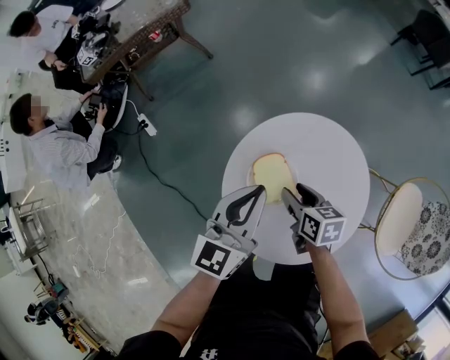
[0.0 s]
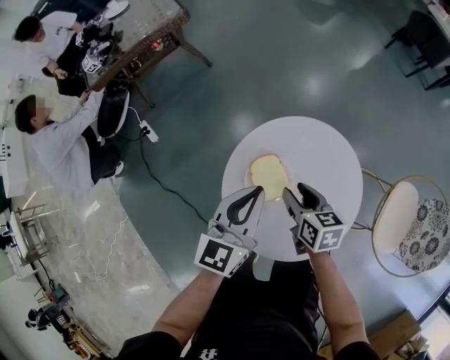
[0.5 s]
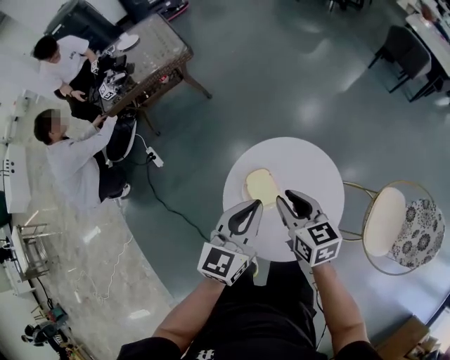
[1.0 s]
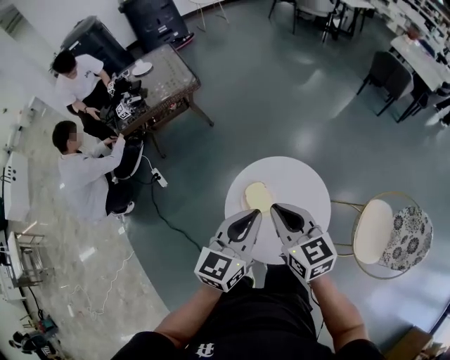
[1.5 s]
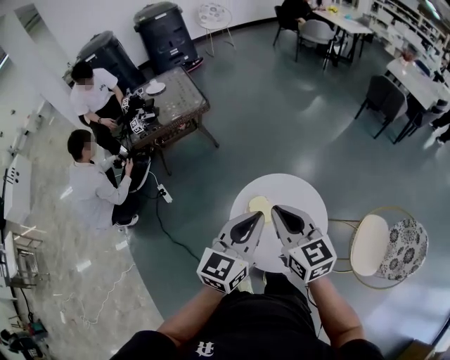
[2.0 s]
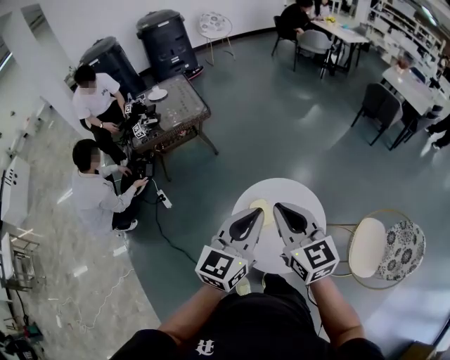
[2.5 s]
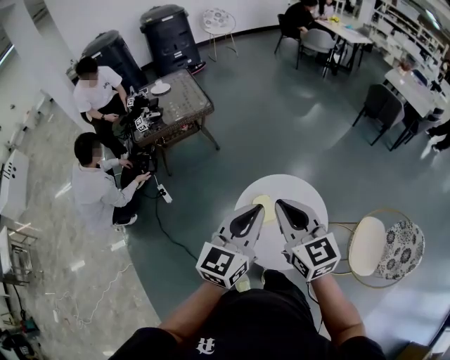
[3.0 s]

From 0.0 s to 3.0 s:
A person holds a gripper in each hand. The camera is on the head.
From 0.0 s to 1.5 s: The right gripper shifts roughly 35 cm upward, rotates some 40 degrees, and closes. Meanwhile the left gripper goes approximately 20 cm upward and backward.
From 1.5 s to 3.0 s: The grippers both shift upward by some 10 cm.

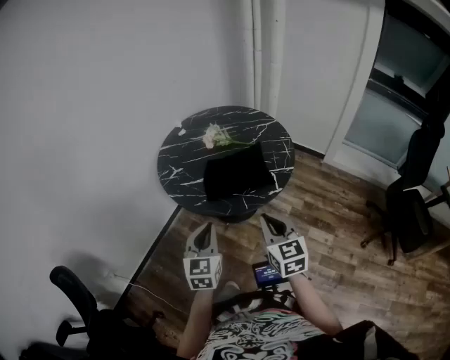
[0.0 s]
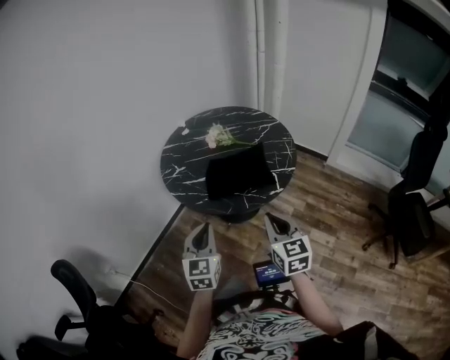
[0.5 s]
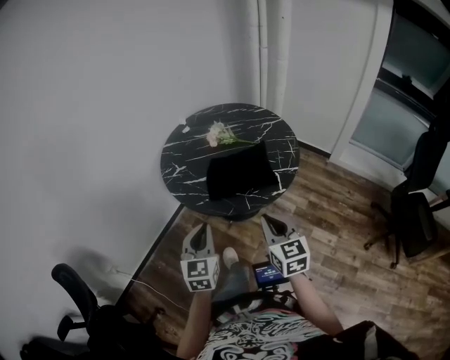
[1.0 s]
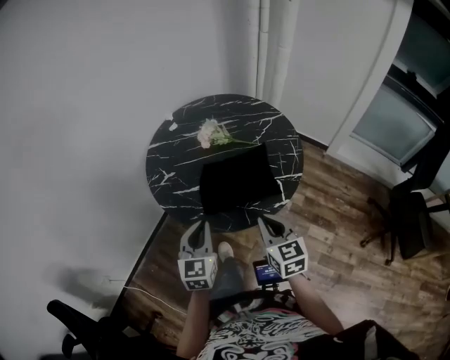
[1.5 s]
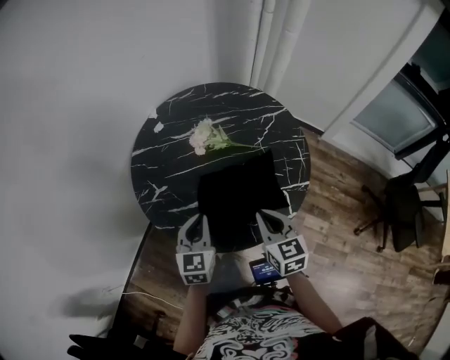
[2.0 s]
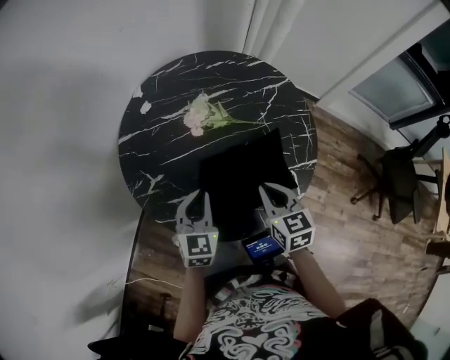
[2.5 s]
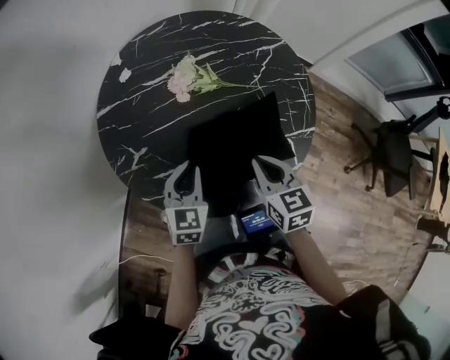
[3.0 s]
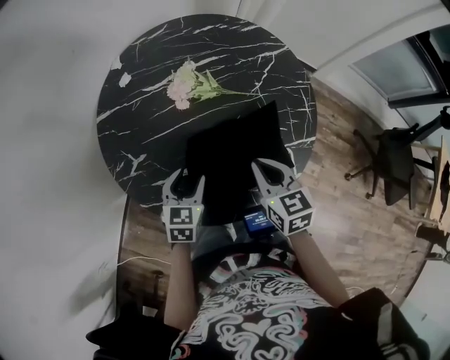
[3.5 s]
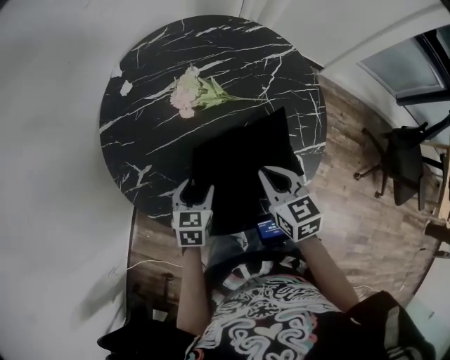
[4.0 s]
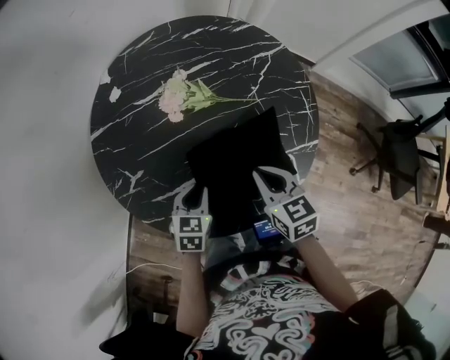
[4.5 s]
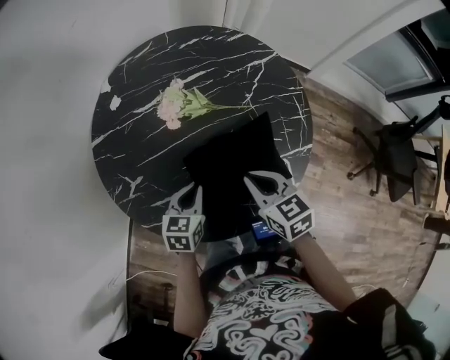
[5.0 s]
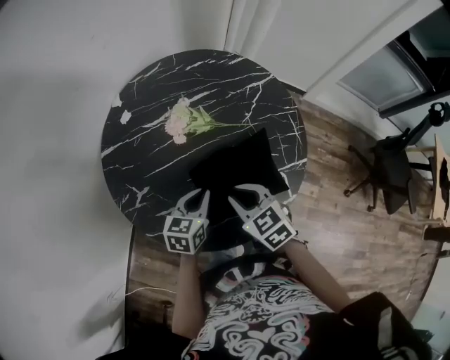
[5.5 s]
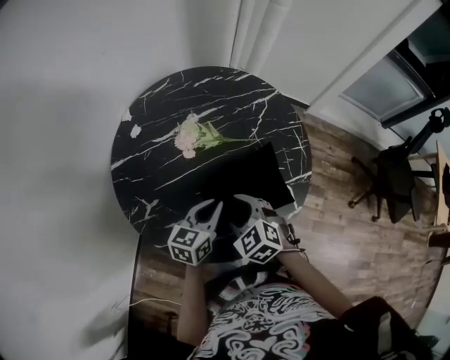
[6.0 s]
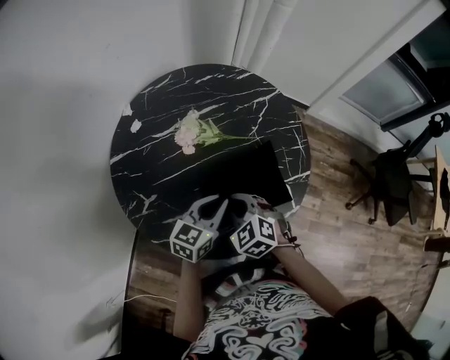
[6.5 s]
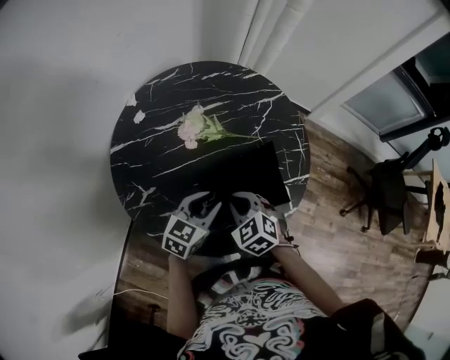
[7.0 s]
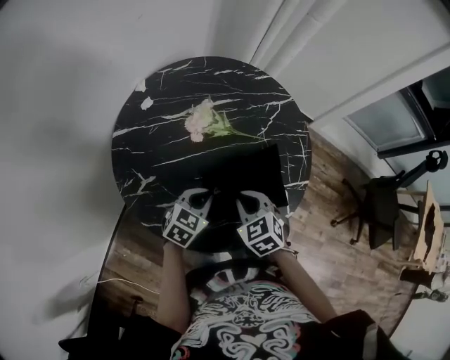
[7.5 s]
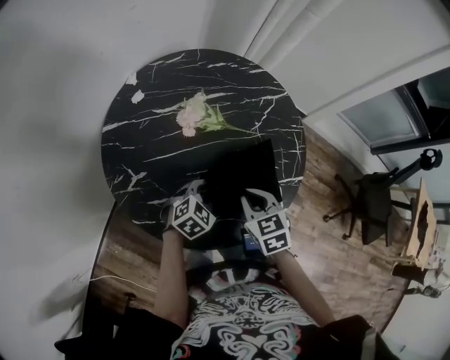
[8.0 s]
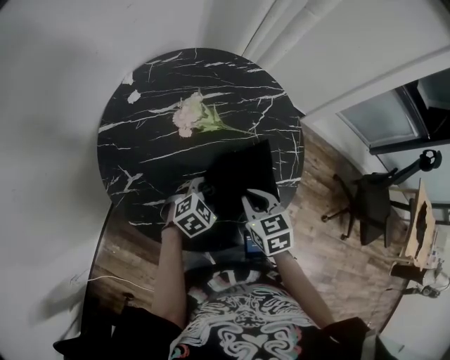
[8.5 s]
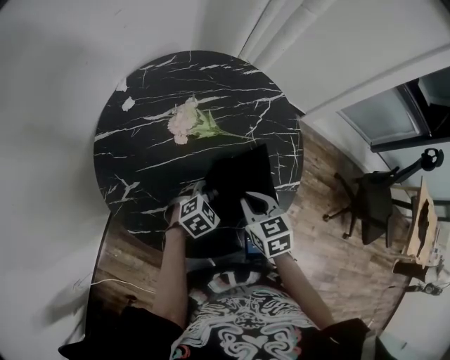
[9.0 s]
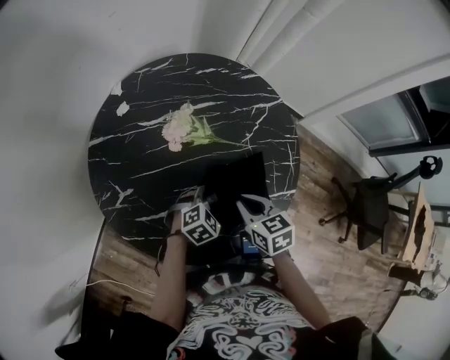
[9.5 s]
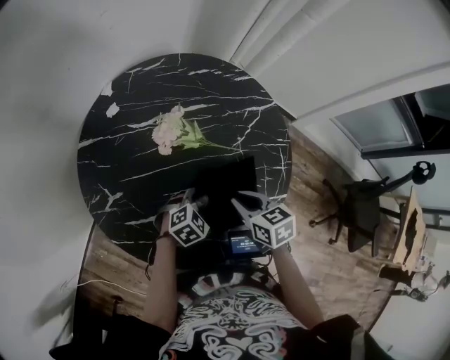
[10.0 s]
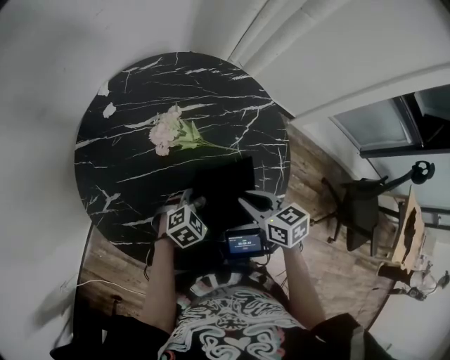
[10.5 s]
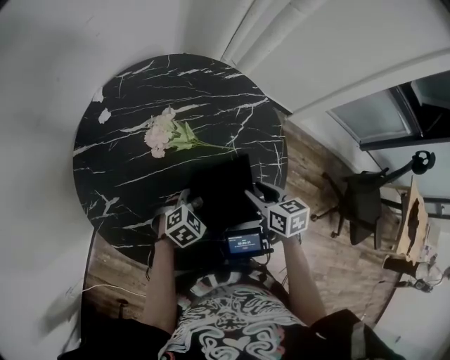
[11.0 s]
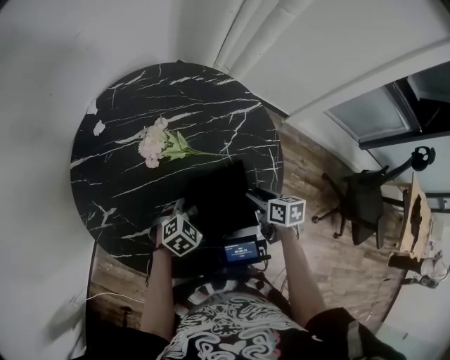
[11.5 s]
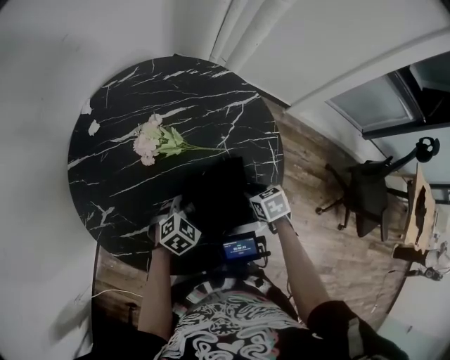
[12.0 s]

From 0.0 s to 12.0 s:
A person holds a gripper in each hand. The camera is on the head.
From 0.0 s to 2.0 s: Both grippers travel together forward, approximately 25 cm.
From 2.0 s to 4.0 s: The right gripper moves forward and downward, approximately 10 cm. The left gripper goes about 15 cm downward, turns by some 30 degrees, and opens up.
From 4.0 s to 6.0 s: The left gripper is displaced upward and to the right by about 10 cm, swivels about 30 degrees, and closes up. The right gripper moves to the left, about 10 cm, changes its angle by roughly 30 degrees, and opens.
From 6.0 s to 8.0 s: The left gripper moves downward, roughly 10 cm, and swivels approximately 40 degrees. Meanwhile the right gripper is displaced to the right by some 5 cm, turns by approximately 20 degrees, and closes.
From 8.0 s to 10.0 s: The left gripper shifts by roughly 10 cm, and opens; the right gripper is displaced forward by some 5 cm.
From 10.0 s to 12.0 s: The right gripper is displaced to the right and downward by roughly 15 cm, changes its angle by approximately 20 degrees, and opens up.

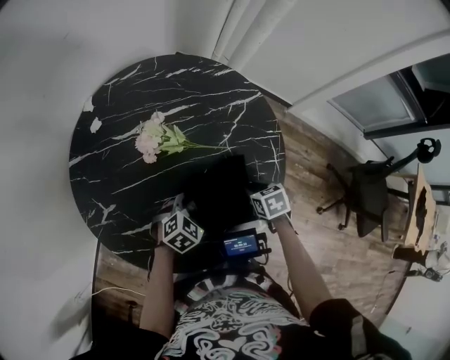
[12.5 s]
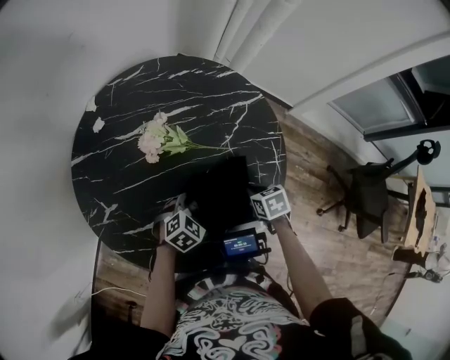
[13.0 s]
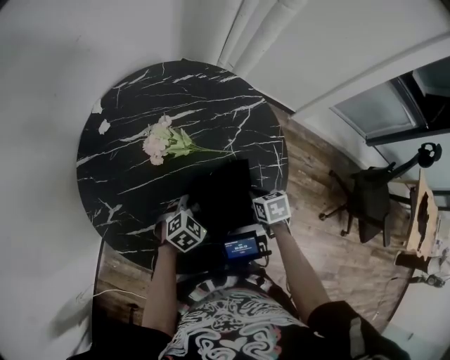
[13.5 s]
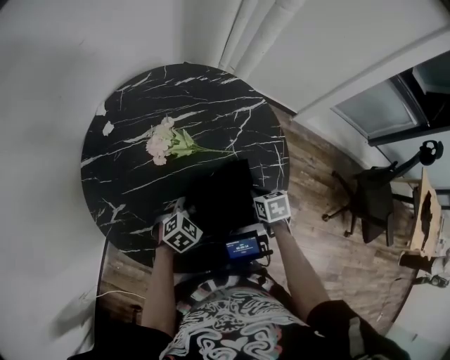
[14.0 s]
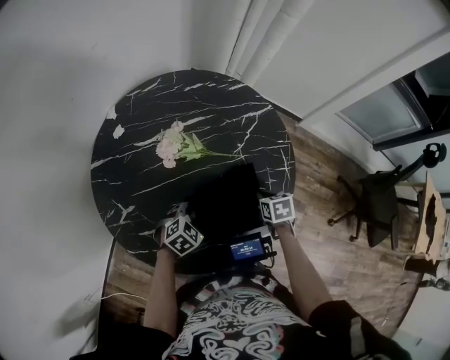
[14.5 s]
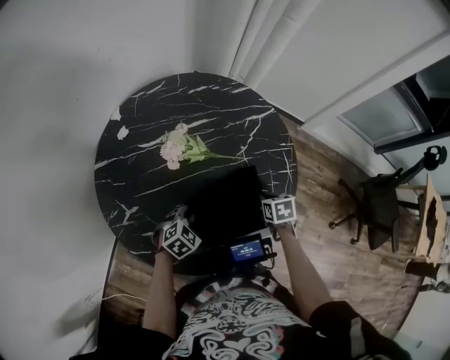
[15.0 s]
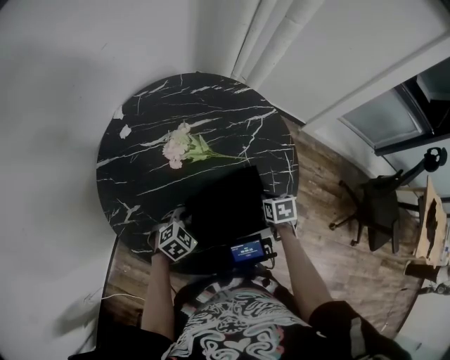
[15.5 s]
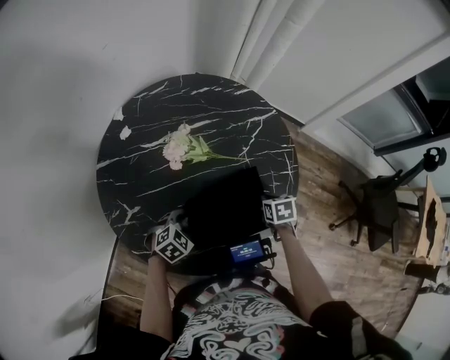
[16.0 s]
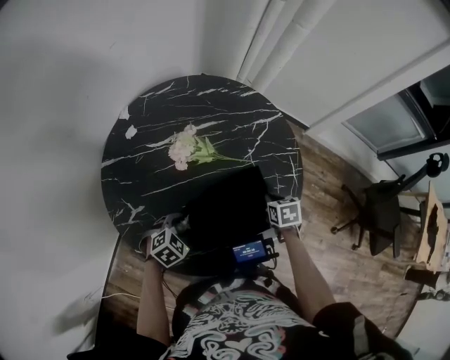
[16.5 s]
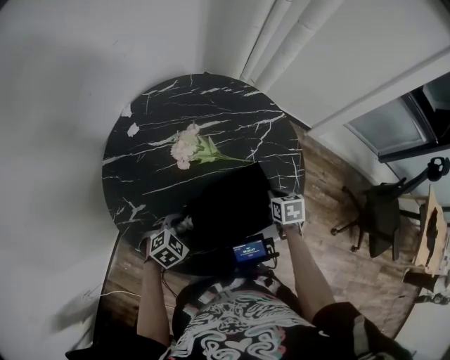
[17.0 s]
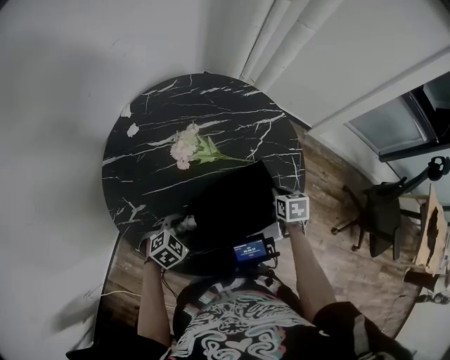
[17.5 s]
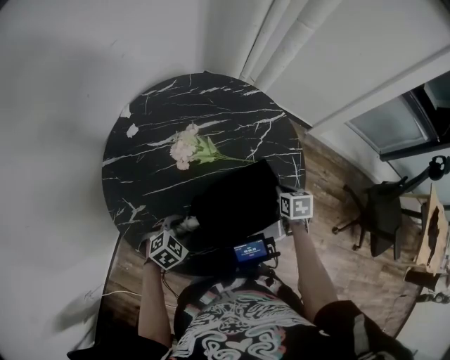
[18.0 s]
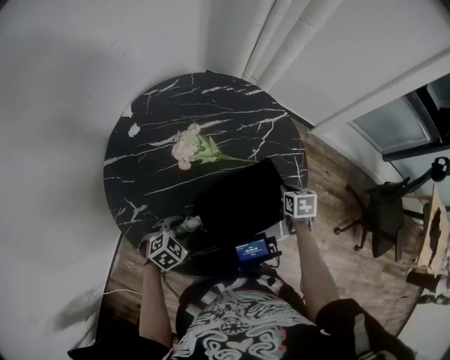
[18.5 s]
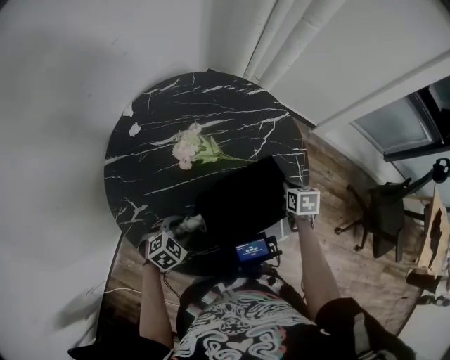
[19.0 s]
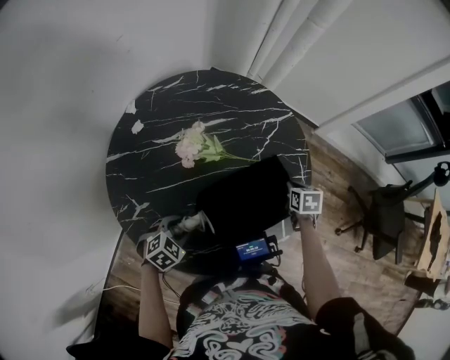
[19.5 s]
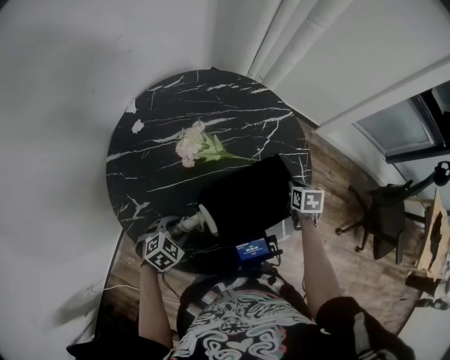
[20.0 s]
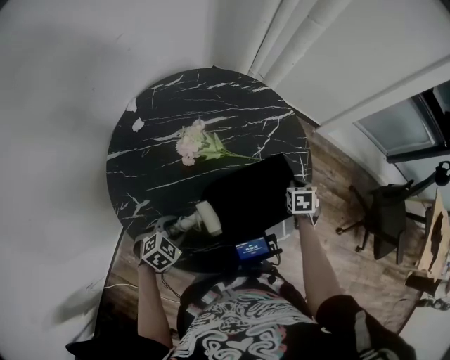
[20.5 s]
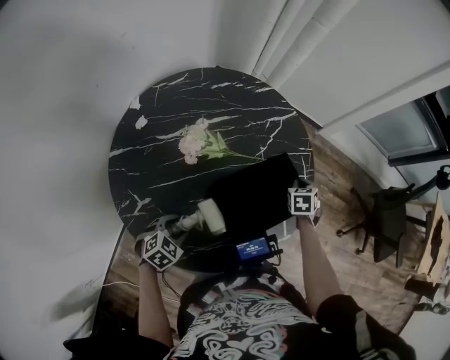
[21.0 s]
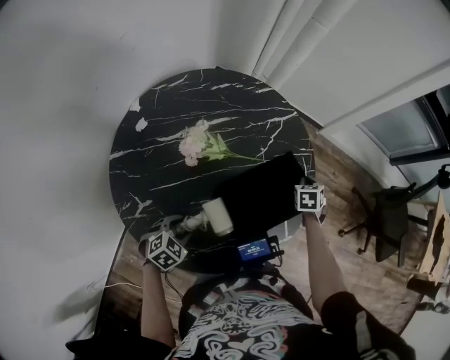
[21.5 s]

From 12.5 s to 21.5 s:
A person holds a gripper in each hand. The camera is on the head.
From 12.5 s to 14.5 s: The right gripper closes its fingers.
From 14.5 s to 17.0 s: The left gripper moves to the left and backward, some 10 cm.
From 17.0 s to 19.5 s: The right gripper goes approximately 5 cm forward.
From 19.5 s to 21.5 s: The right gripper moves some 5 cm, and turns by approximately 20 degrees.

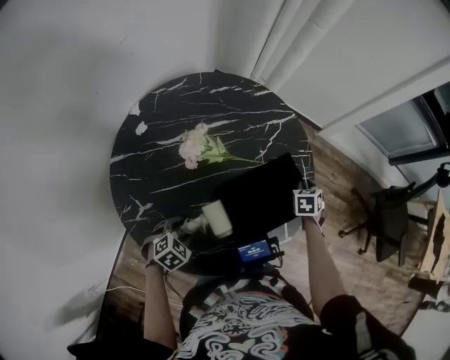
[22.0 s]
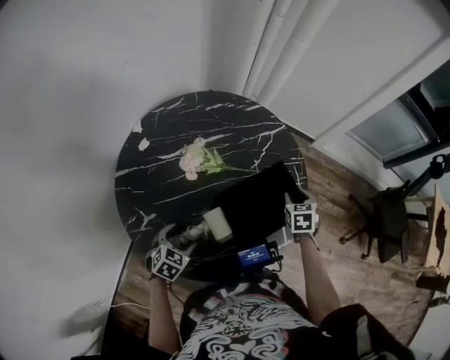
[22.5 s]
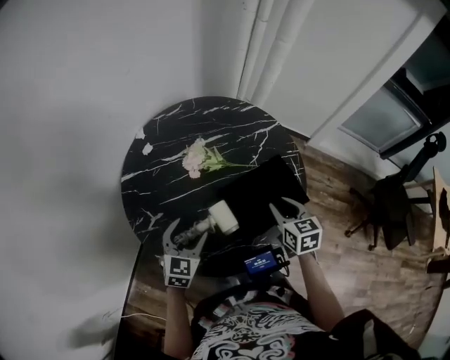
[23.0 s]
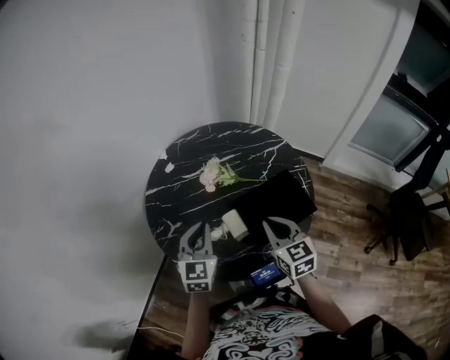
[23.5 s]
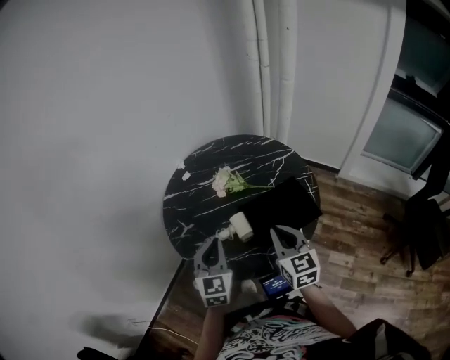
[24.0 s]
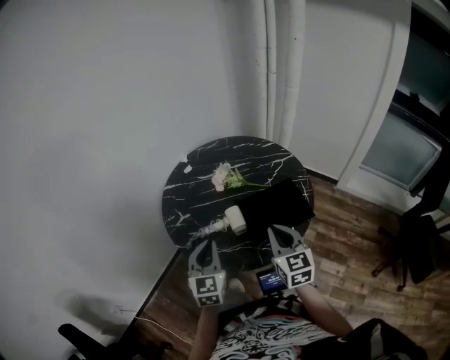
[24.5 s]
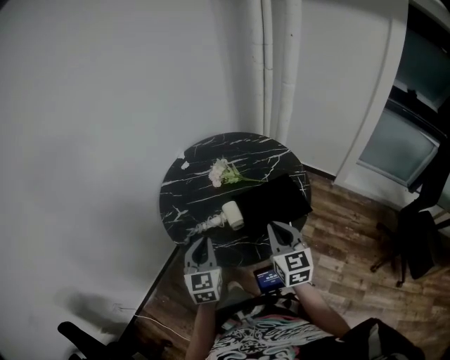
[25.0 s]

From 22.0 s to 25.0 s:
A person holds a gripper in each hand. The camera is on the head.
From 22.0 s to 23.5 s: The left gripper heads upward, covering approximately 25 cm, angles its fingers upward, by approximately 50 degrees, and closes. The right gripper ends up roughly 35 cm from where it was, tilts its fingers about 30 degrees upward, and opens, then closes once more.
From 23.5 s to 25.0 s: The two grippers go roughly 15 cm backward.
